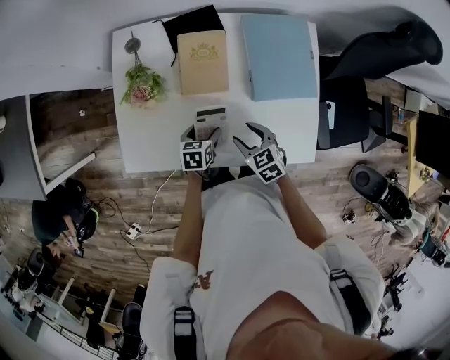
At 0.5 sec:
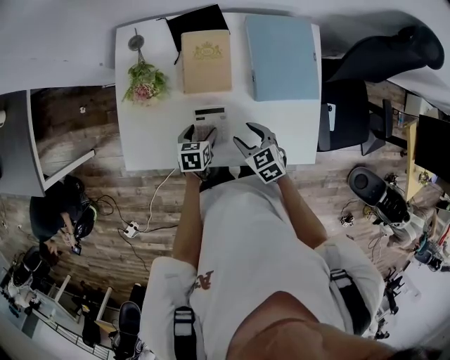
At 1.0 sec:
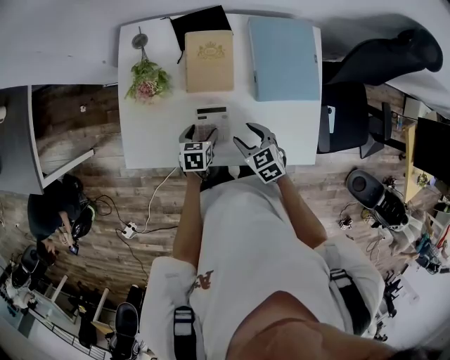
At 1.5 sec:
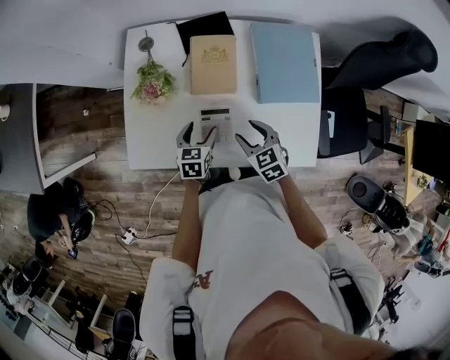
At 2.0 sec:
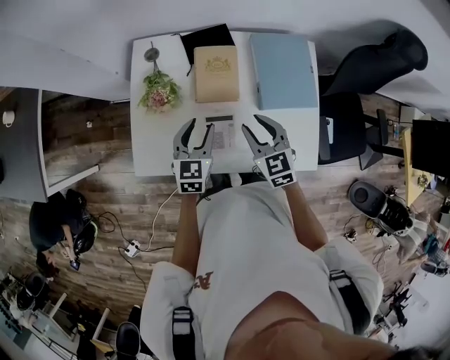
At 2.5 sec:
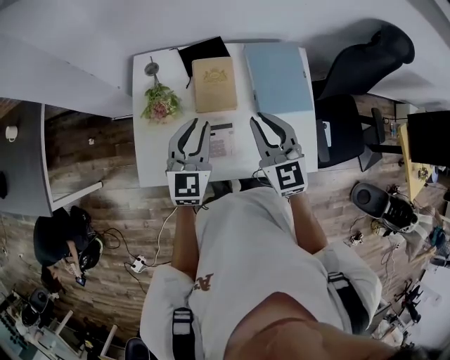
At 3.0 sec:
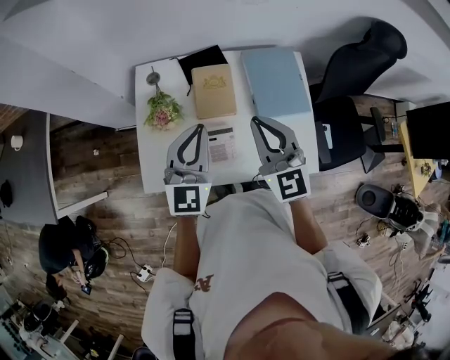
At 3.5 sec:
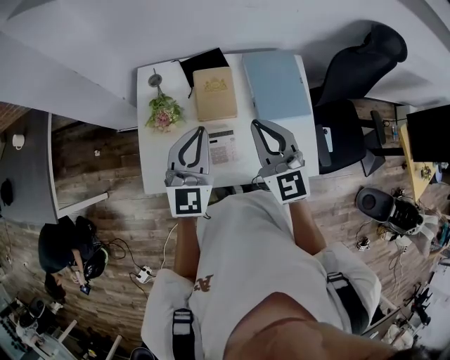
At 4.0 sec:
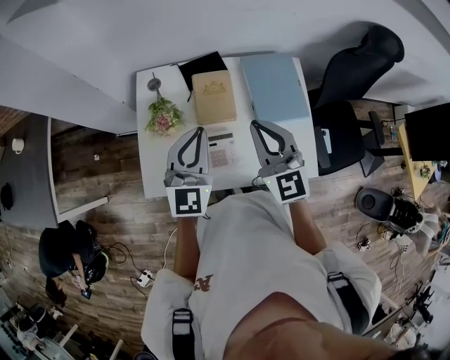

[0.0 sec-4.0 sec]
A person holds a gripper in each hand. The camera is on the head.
0.0 sec to 2.0 sec: The two grippers go approximately 15 cm upward. The left gripper changes its angle by roughly 40 degrees, and closes. Meanwhile the right gripper changes its angle by about 20 degrees.
2.0 sec to 4.0 sec: Both grippers move upward, some 20 cm. The left gripper swivels approximately 30 degrees, and closes its fingers. Meanwhile the right gripper changes its angle by approximately 20 degrees, and closes up.

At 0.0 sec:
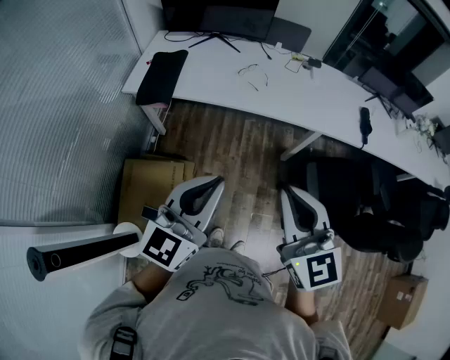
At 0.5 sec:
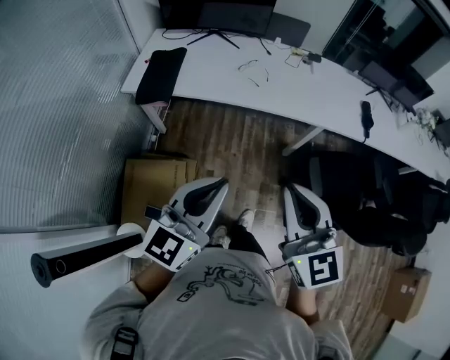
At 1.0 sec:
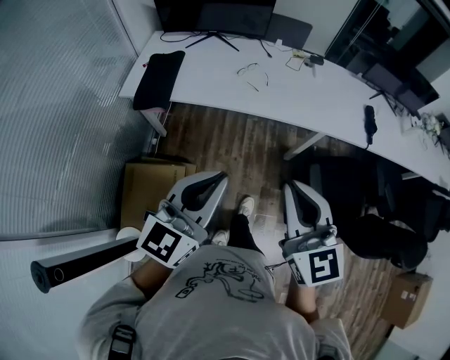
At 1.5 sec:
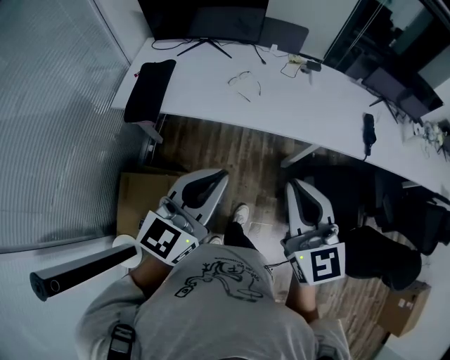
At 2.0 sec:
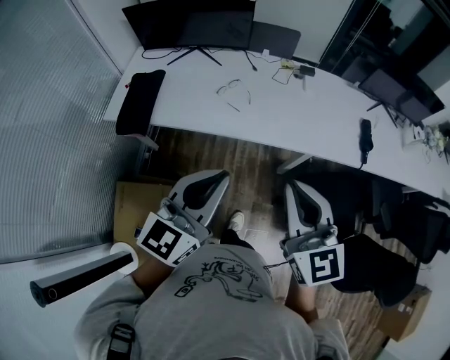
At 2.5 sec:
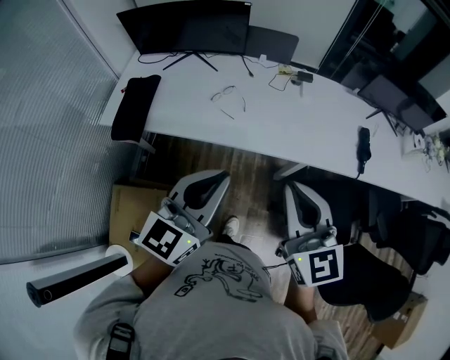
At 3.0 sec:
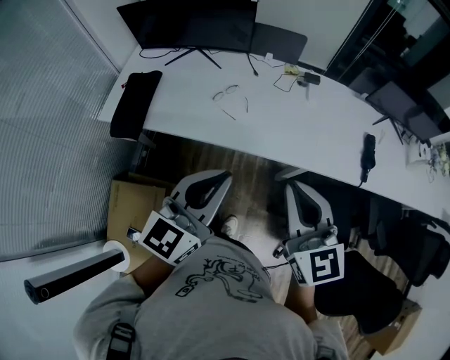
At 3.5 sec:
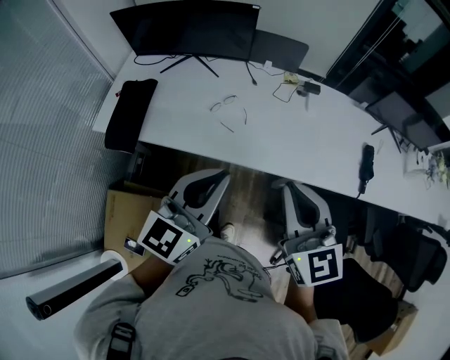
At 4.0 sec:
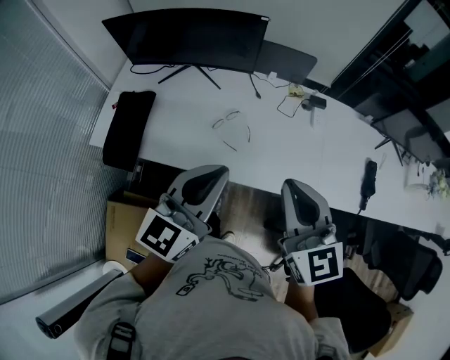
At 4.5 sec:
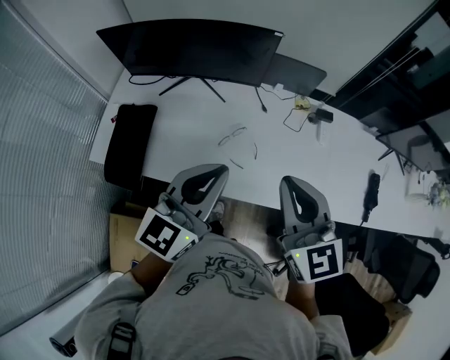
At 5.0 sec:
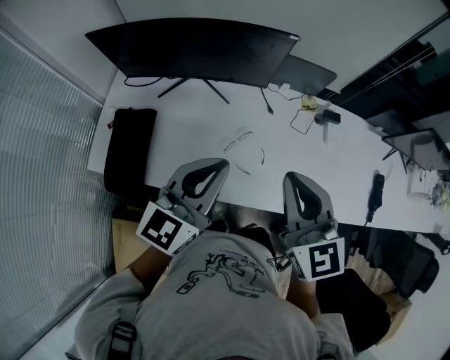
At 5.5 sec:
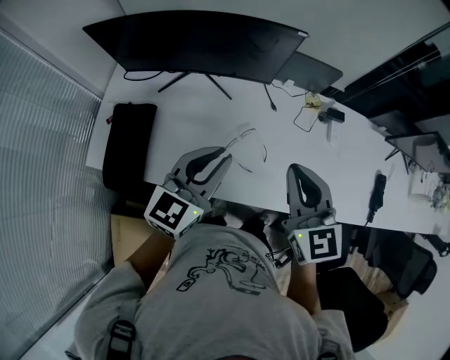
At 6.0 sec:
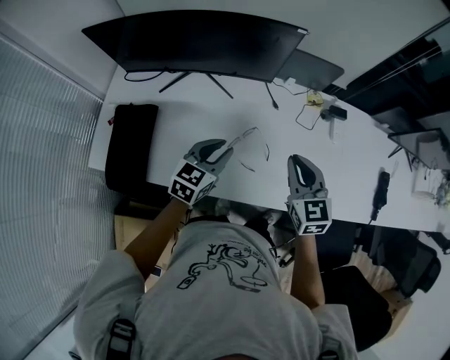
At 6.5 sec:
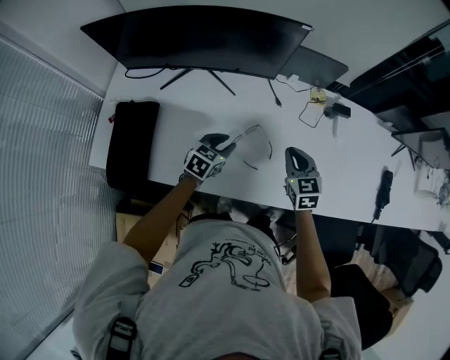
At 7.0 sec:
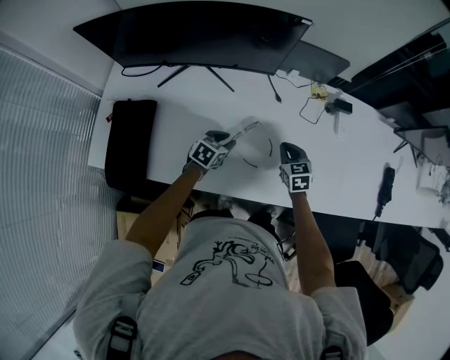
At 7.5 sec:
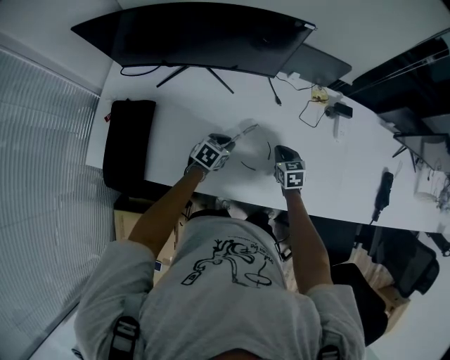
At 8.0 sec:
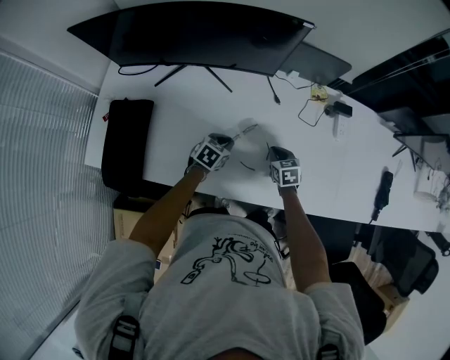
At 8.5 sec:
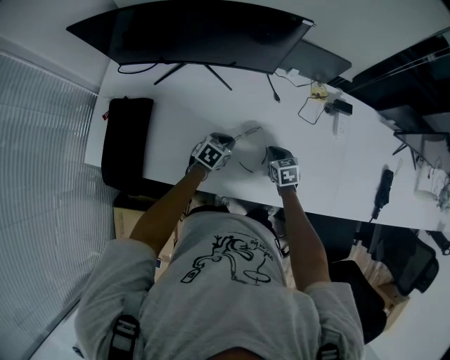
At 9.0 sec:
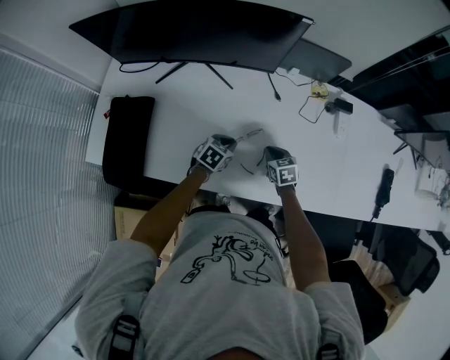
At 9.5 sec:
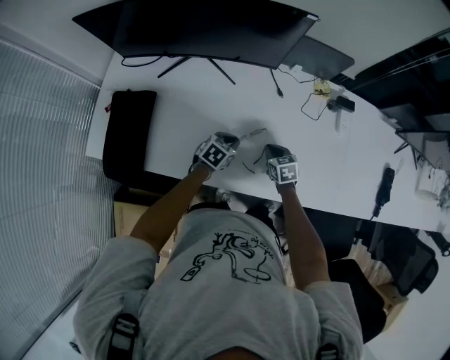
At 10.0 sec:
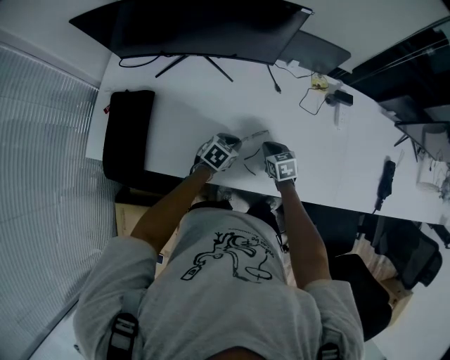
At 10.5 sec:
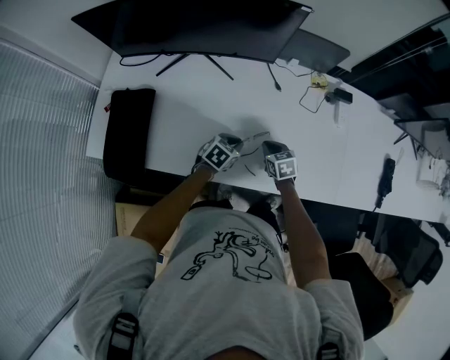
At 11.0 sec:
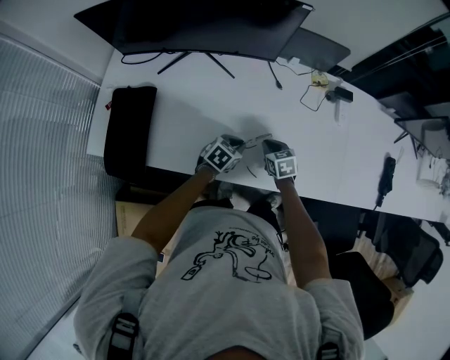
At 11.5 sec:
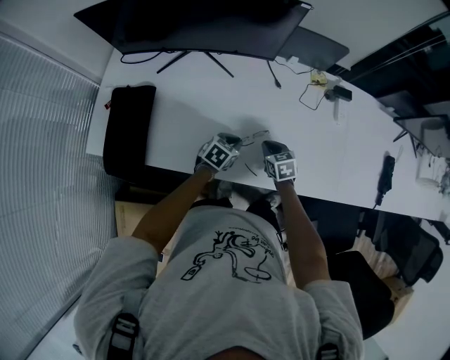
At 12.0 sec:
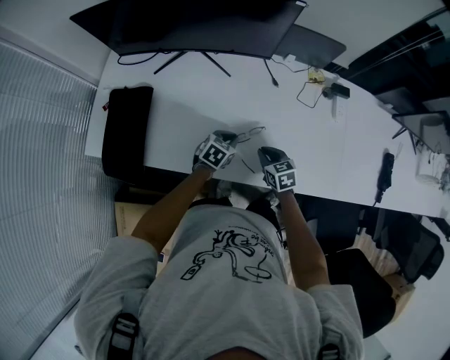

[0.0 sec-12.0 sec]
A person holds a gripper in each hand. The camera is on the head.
0.0 sec to 2.0 sec: The grippers both shift forward and to the right by some 25 cm.
2.0 sec to 4.0 sec: Both grippers move forward, roughly 25 cm.
4.0 sec to 6.0 sec: The right gripper is displaced forward and downward by approximately 30 cm. The left gripper is displaced downward, forward and to the left by about 35 cm, rotates roughly 30 degrees, and opens its fingers.
6.0 sec to 8.0 sec: Both grippers travel together downward, about 25 cm. The left gripper turns by some 30 degrees. The right gripper rotates some 30 degrees.
8.0 sec to 10.0 sec: The left gripper moves roughly 5 cm. Meanwhile the right gripper moves some 5 cm.
10.0 sec to 12.0 sec: The right gripper shifts some 5 cm backward.

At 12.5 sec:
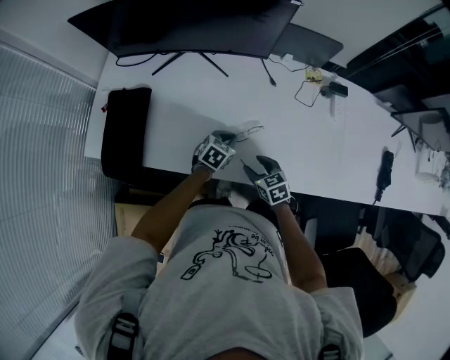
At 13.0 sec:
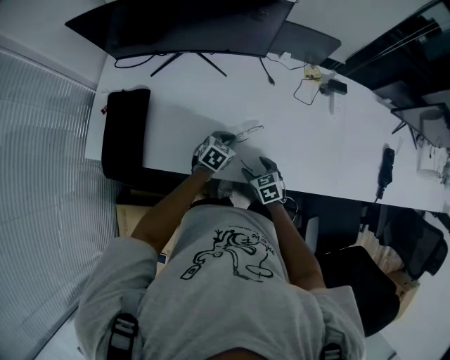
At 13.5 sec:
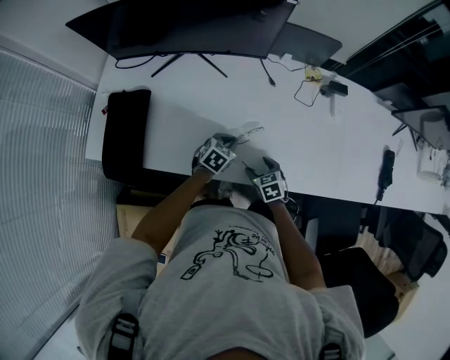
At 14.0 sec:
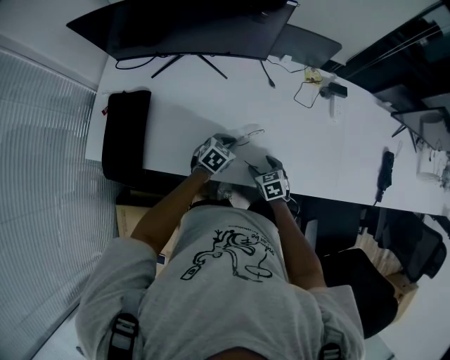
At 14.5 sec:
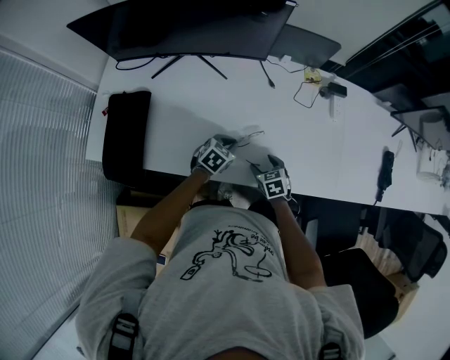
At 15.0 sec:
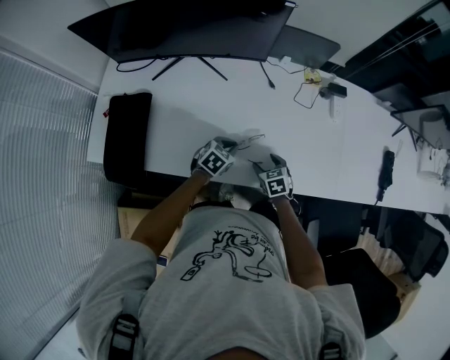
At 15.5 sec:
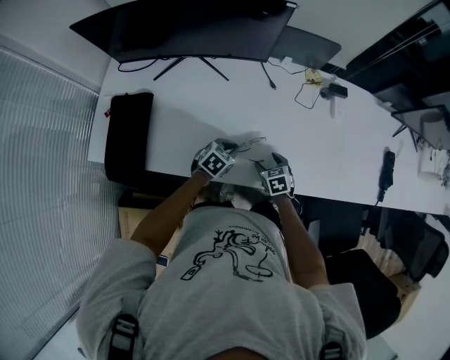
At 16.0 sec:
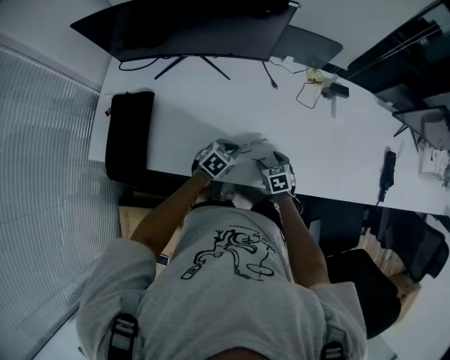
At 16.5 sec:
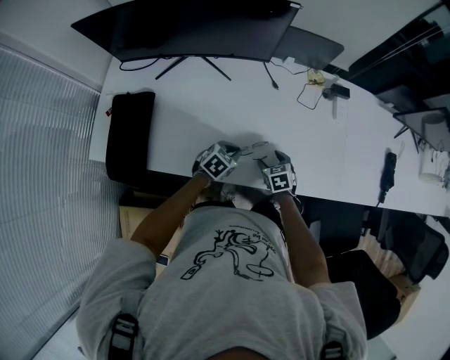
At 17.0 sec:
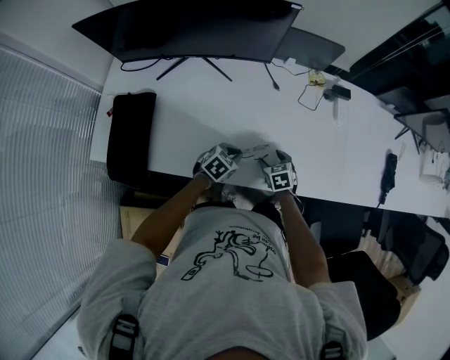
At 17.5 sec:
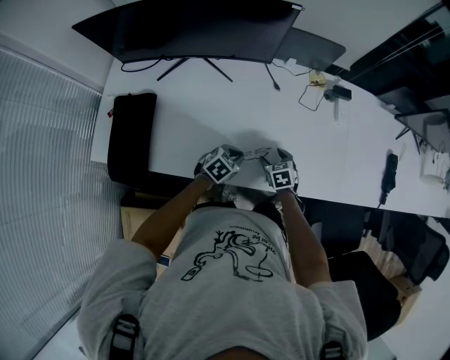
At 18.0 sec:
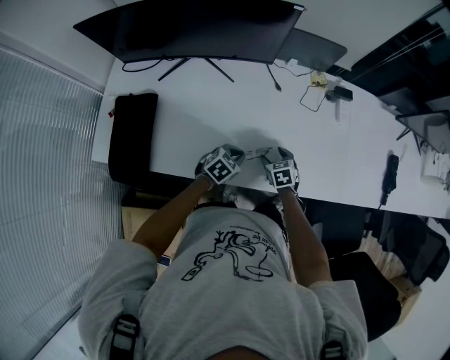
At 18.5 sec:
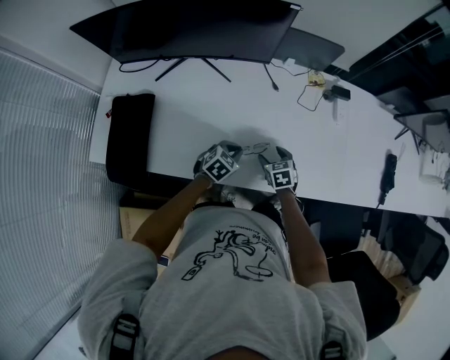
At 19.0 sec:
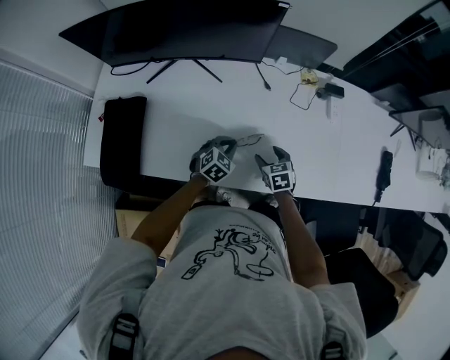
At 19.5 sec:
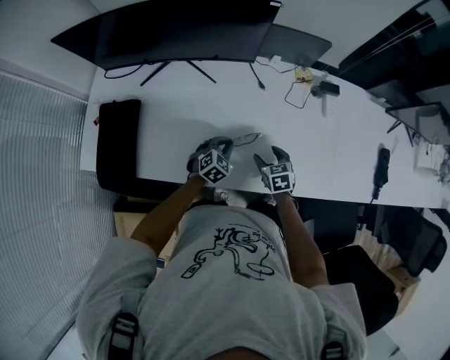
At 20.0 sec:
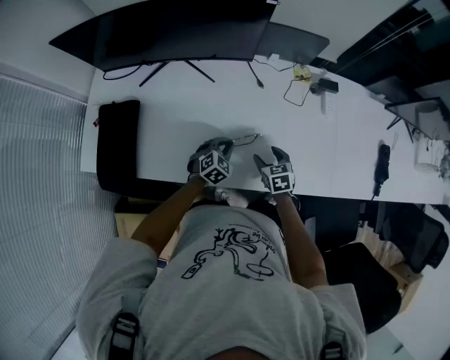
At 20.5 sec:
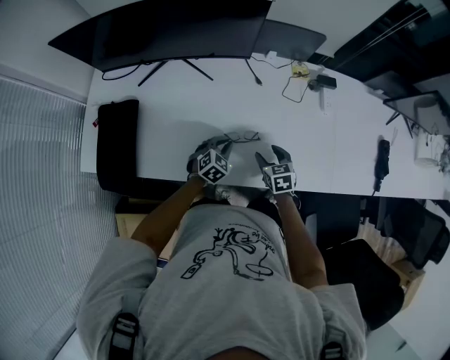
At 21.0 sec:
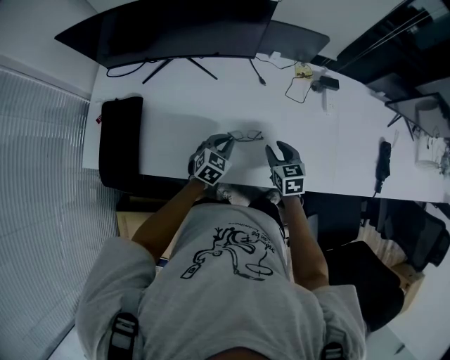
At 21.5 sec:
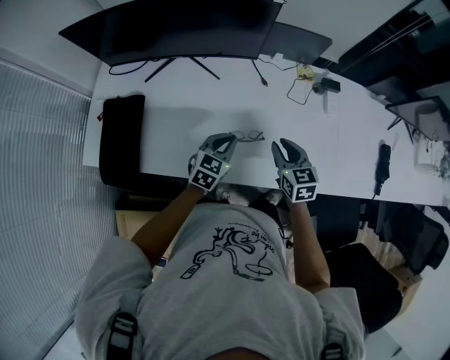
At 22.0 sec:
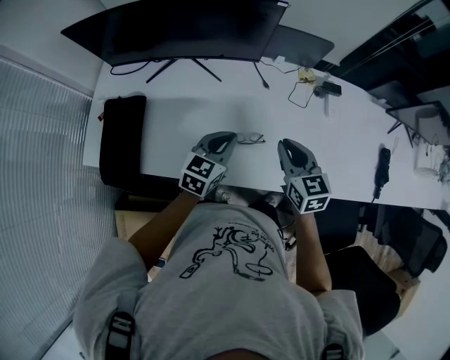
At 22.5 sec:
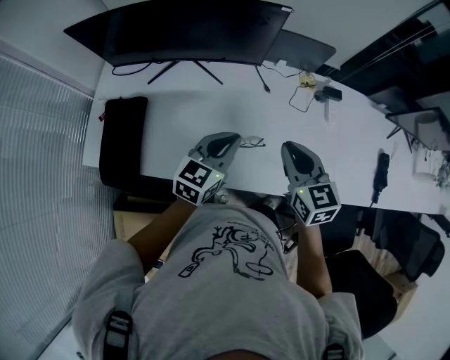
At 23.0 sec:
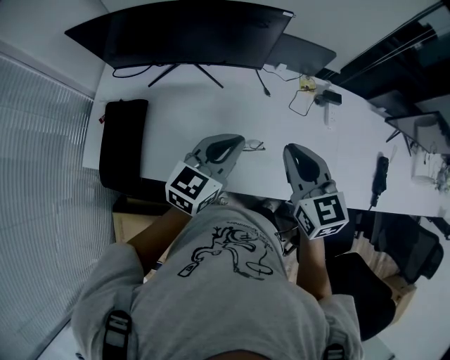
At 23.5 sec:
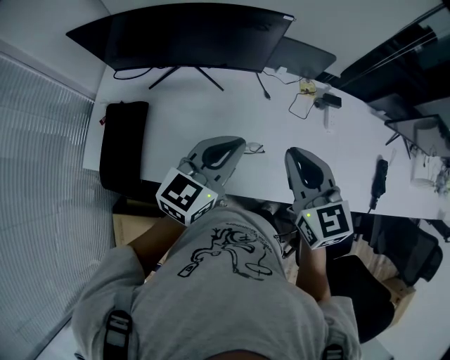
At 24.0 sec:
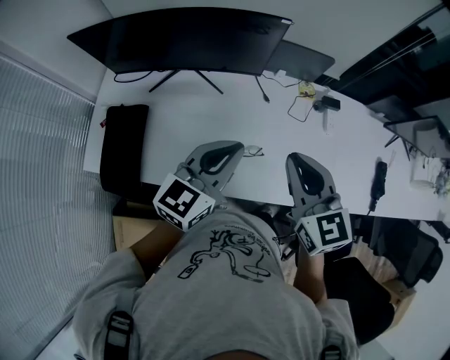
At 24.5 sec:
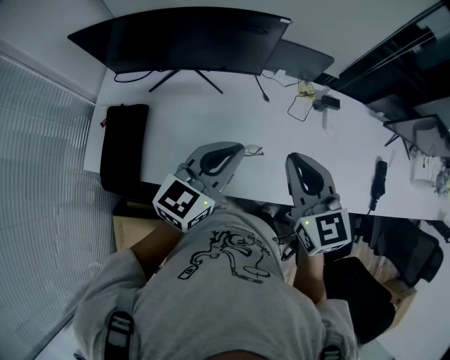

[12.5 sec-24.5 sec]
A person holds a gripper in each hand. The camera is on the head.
12.5 sec to 14.5 sec: The right gripper heads downward, covering about 5 cm.
14.5 sec to 18.5 sec: There are only small adjustments of the grippers.
18.5 sec to 20.5 sec: The right gripper ends up roughly 5 cm from where it was.
20.5 sec to 22.5 sec: The grippers both shift upward by about 25 cm. The right gripper rotates some 20 degrees, and closes up. Meanwhile the left gripper turns by some 40 degrees.
22.5 sec to 24.5 sec: Both grippers travel together upward, some 10 cm.
